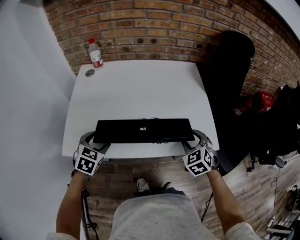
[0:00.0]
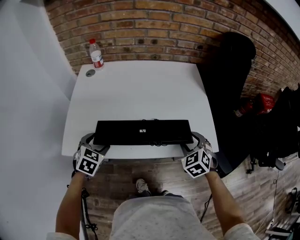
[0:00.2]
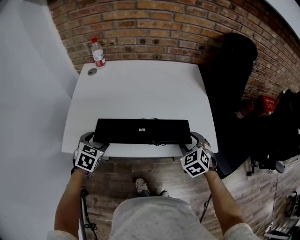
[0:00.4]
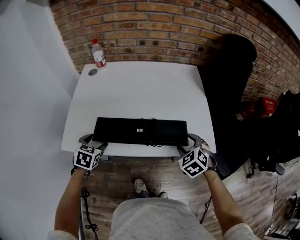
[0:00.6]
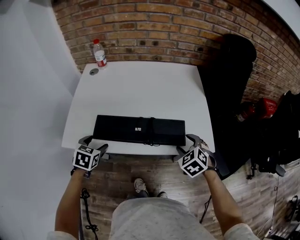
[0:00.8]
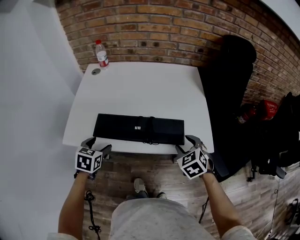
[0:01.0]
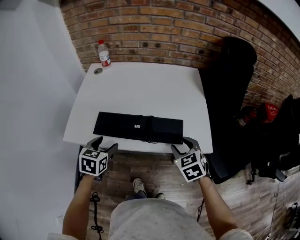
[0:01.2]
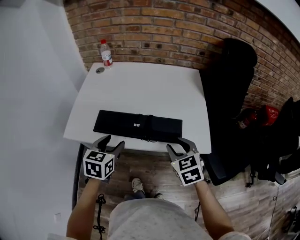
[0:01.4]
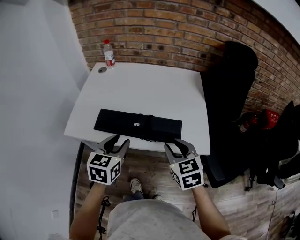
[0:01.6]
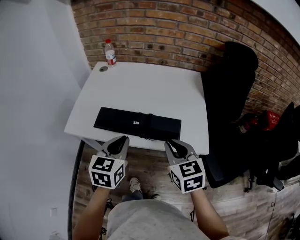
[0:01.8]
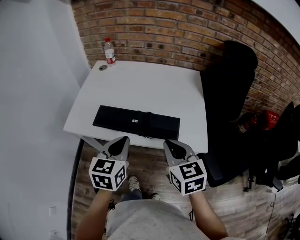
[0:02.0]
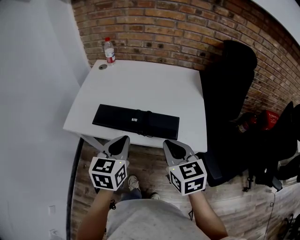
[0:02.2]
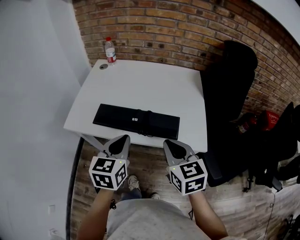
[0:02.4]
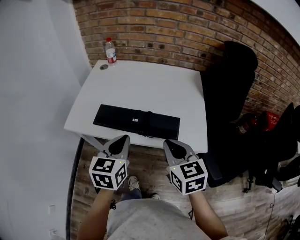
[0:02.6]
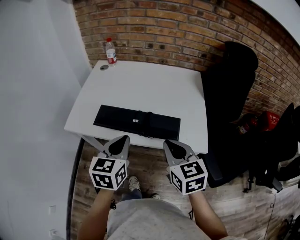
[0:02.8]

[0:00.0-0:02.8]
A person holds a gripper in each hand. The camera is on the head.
0:00.0 to 0:01.4: The left gripper heads to the right, backward and upward, covering roughly 15 cm, and changes its angle by approximately 30 degrees, while the right gripper heads backward, covering some 5 cm, and rotates roughly 20 degrees.
0:01.4 to 0:02.8: The right gripper travels upward by roughly 5 cm, and closes. Meanwhile the left gripper is displaced upward and to the right by some 10 cm, and closes its fingers.

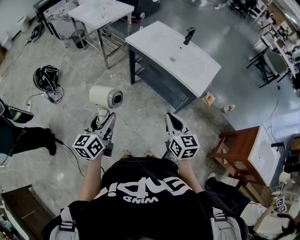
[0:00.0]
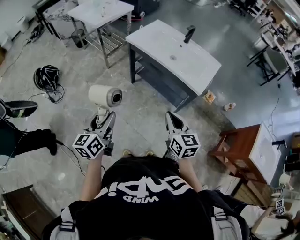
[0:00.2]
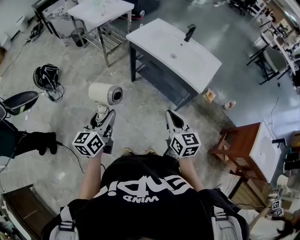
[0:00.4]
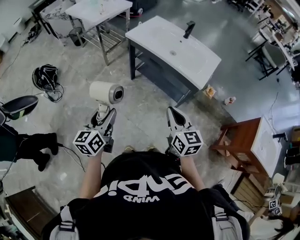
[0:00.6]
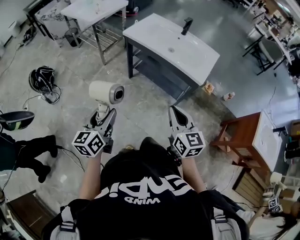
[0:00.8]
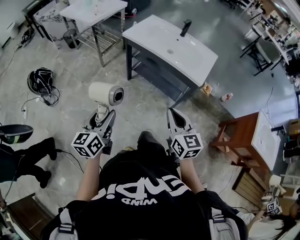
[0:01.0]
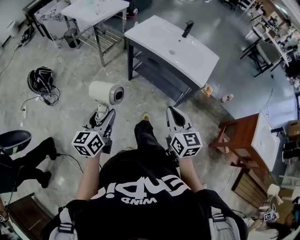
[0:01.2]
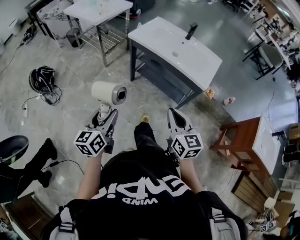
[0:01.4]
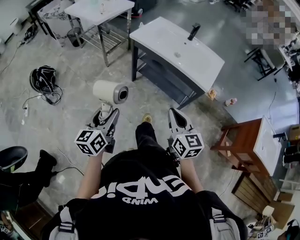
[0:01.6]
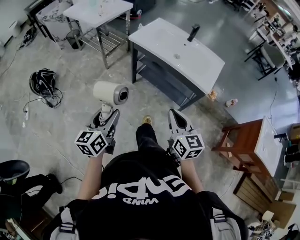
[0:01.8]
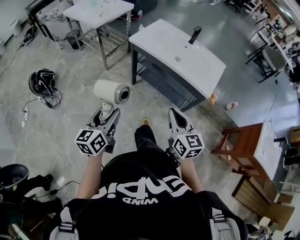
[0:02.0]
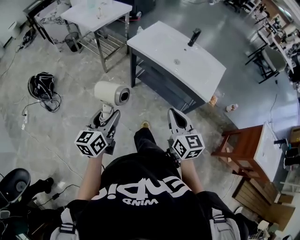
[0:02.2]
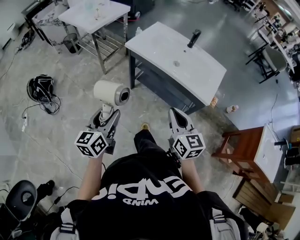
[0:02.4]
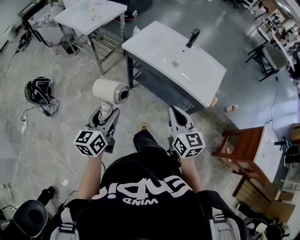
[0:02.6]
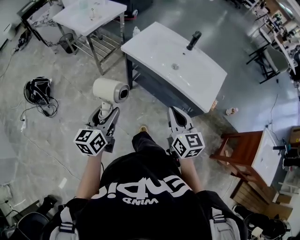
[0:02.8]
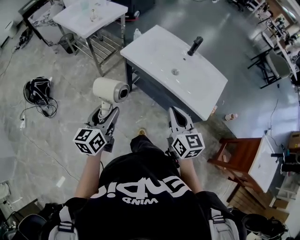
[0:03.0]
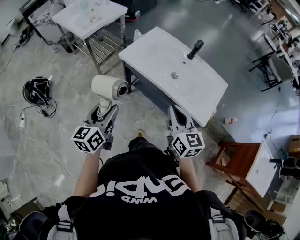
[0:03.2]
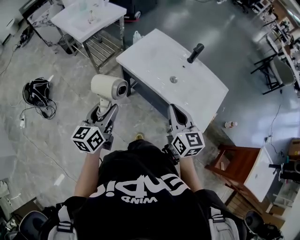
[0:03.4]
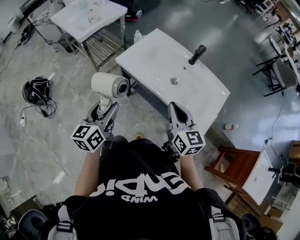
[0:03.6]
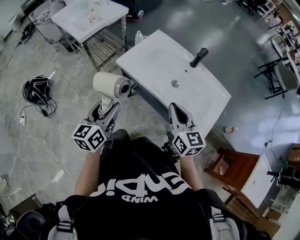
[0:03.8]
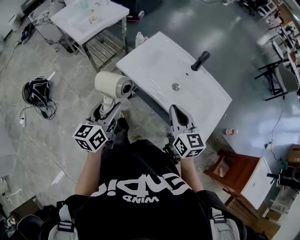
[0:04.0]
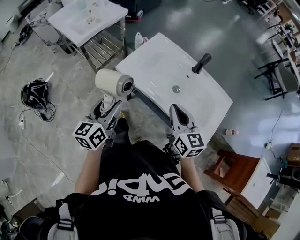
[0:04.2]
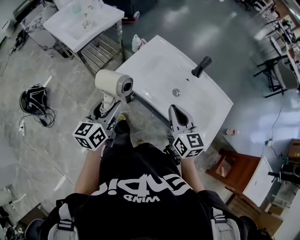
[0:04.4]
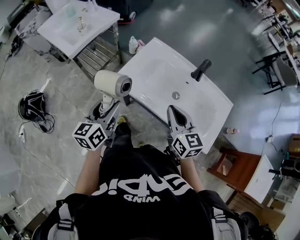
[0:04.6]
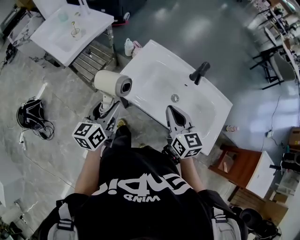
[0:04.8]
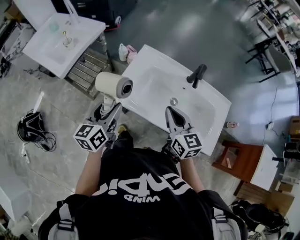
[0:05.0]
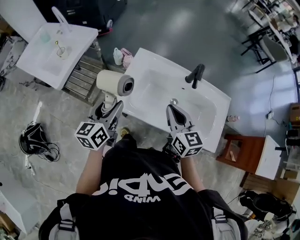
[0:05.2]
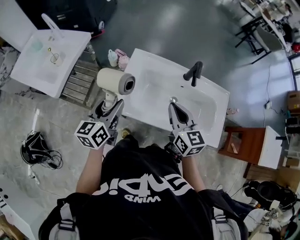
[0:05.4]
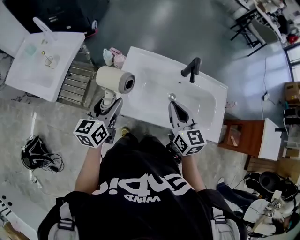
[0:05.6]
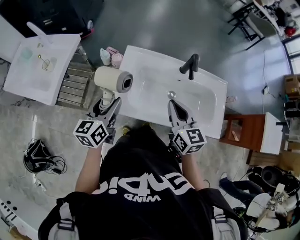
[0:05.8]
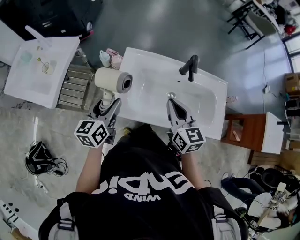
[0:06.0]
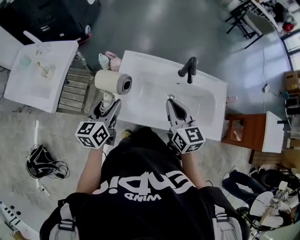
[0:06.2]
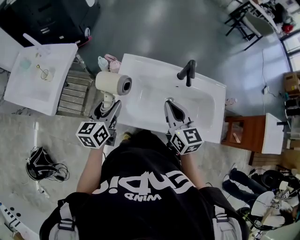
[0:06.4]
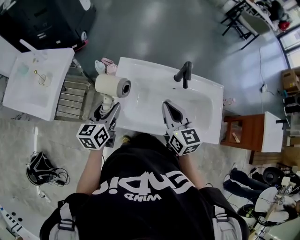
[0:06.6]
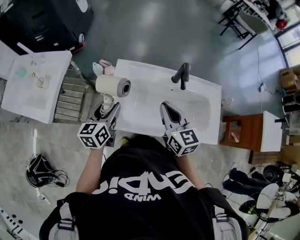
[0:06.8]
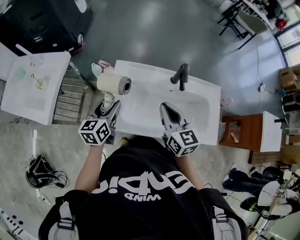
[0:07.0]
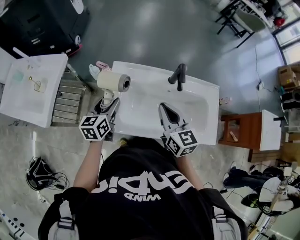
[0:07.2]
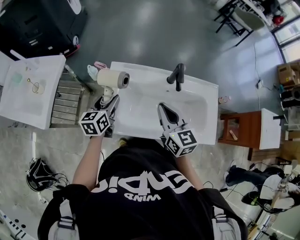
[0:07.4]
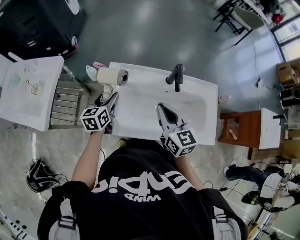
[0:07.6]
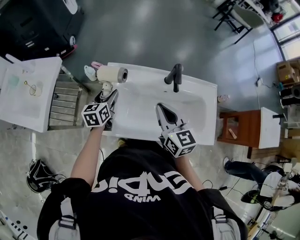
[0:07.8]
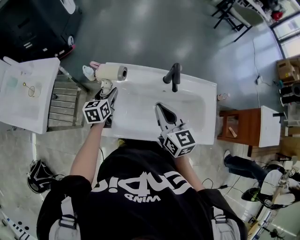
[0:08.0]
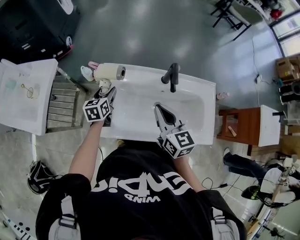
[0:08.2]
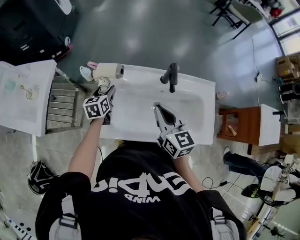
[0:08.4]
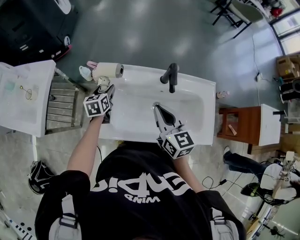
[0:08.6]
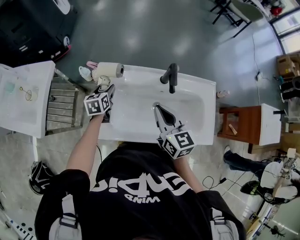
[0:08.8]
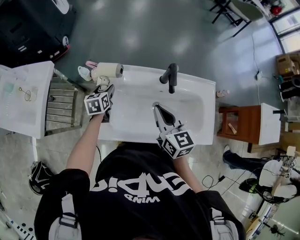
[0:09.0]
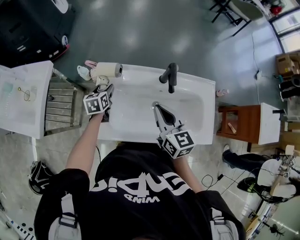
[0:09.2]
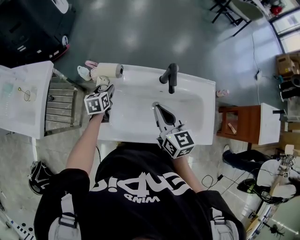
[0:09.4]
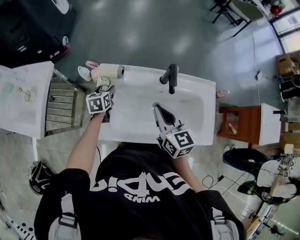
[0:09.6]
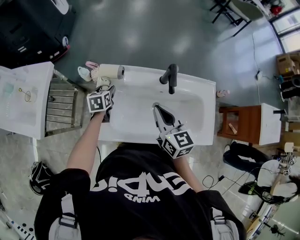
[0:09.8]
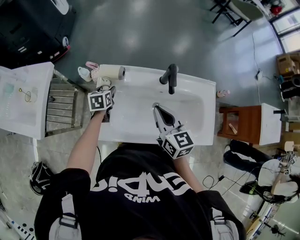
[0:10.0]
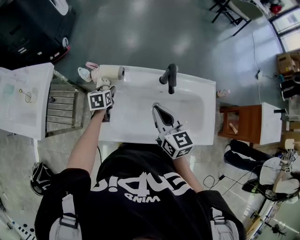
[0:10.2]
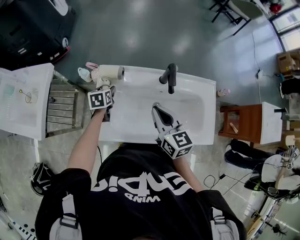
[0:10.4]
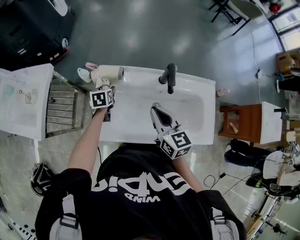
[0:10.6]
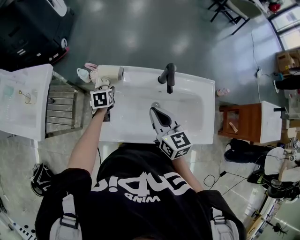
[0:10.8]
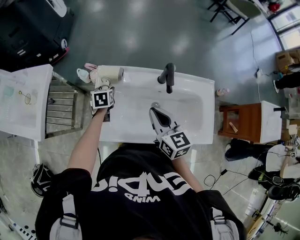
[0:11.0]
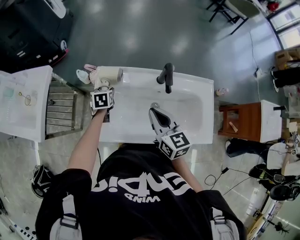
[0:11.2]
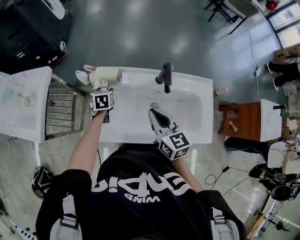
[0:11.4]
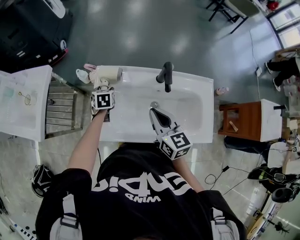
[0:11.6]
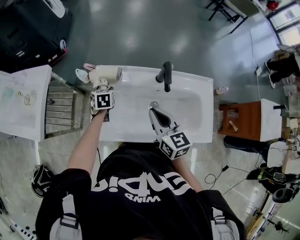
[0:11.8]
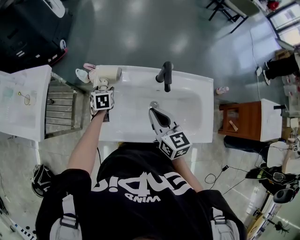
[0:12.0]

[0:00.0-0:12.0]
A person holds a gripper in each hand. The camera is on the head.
0:00.0 to 0:01.6: The two grippers go about 5 cm to the left.
0:01.6 to 0:03.0: Both grippers move forward, about 20 cm.
0:03.0 to 0:04.4: Both grippers travel together forward, some 20 cm.
0:04.4 to 0:06.0: The left gripper travels forward by some 20 cm, and rotates approximately 30 degrees, while the right gripper is displaced forward by approximately 15 cm, and rotates roughly 20 degrees.
0:06.0 to 0:07.6: The left gripper travels forward and downward by some 15 cm.
0:07.6 to 0:09.0: The left gripper travels downward and forward by about 10 cm.
0:09.0 to 0:12.0: The grippers make only small movements.

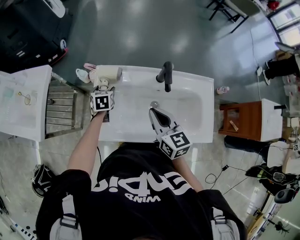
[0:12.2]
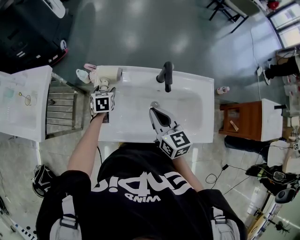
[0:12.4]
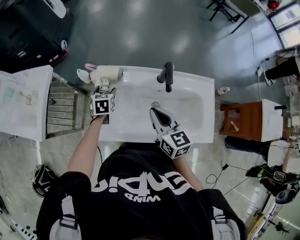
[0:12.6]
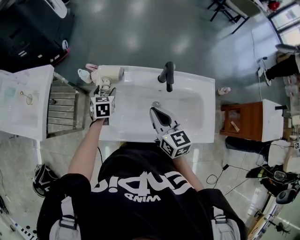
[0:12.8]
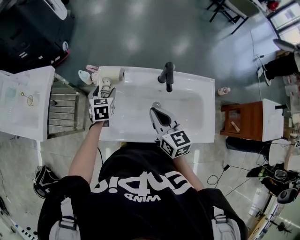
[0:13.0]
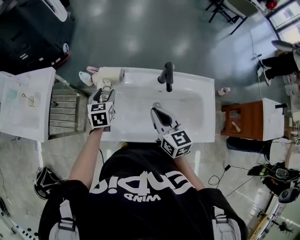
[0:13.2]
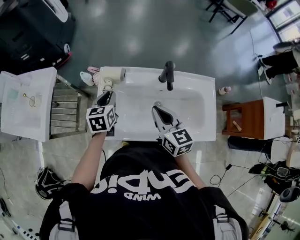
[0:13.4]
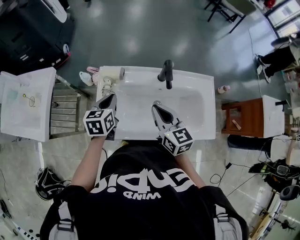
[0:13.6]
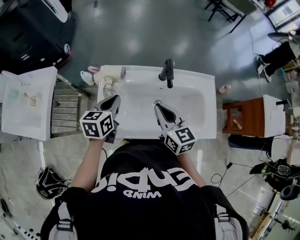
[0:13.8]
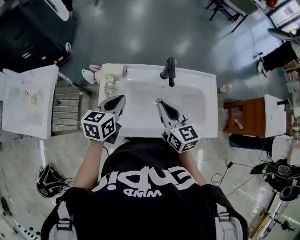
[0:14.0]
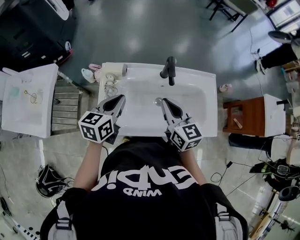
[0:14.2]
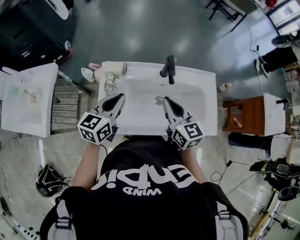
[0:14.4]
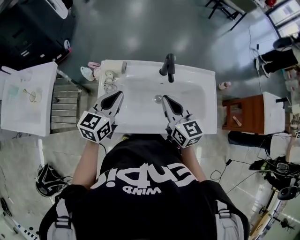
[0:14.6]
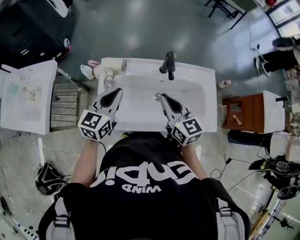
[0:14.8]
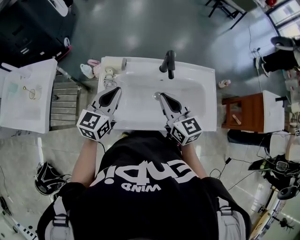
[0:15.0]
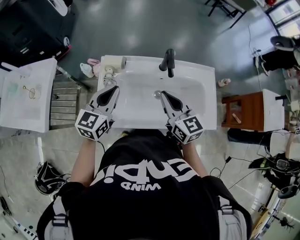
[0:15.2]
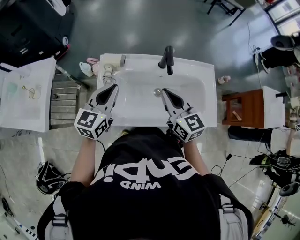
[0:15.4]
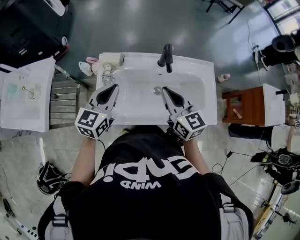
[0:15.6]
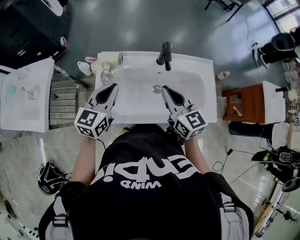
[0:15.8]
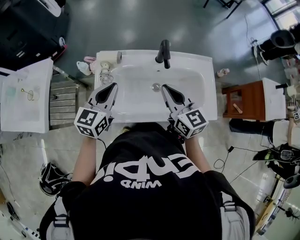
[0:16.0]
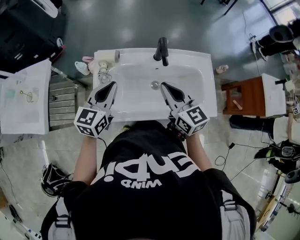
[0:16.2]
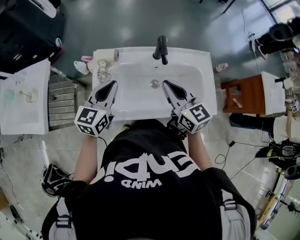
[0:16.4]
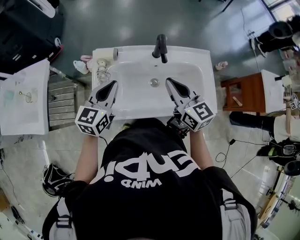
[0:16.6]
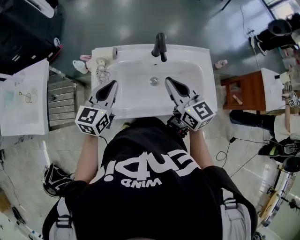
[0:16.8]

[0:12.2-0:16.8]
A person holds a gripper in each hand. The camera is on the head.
0:12.2 to 0:13.8: The left gripper travels upward and backward by approximately 20 cm, rotates approximately 30 degrees, and closes.
0:13.8 to 0:15.2: The left gripper moves upward, some 5 cm, and changes its angle by roughly 30 degrees.
0:15.2 to 0:16.8: The grippers move only a little.

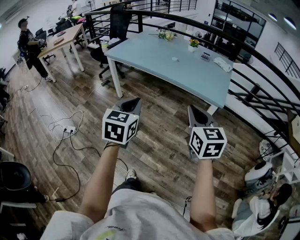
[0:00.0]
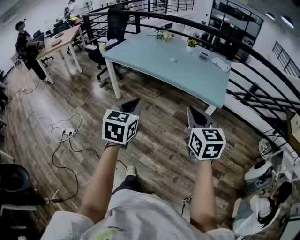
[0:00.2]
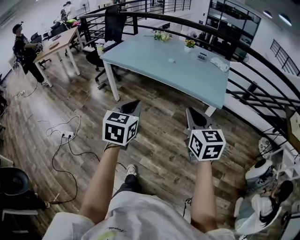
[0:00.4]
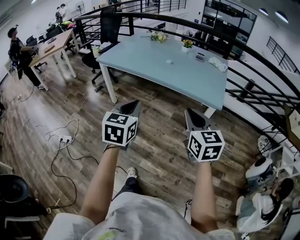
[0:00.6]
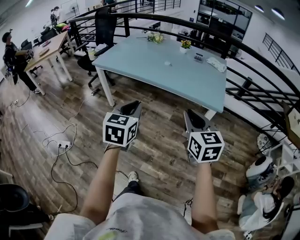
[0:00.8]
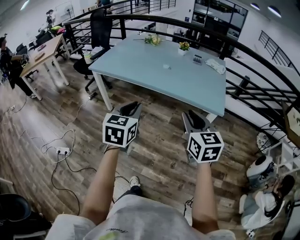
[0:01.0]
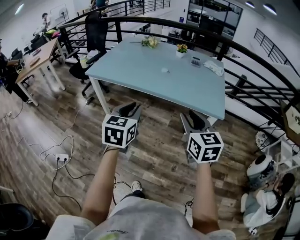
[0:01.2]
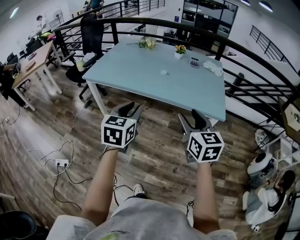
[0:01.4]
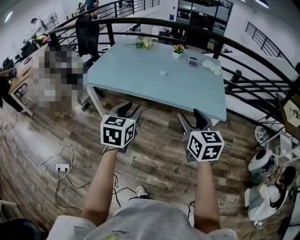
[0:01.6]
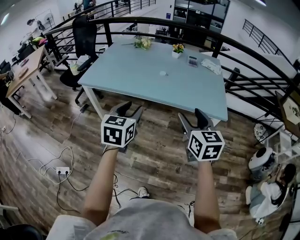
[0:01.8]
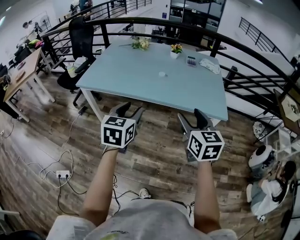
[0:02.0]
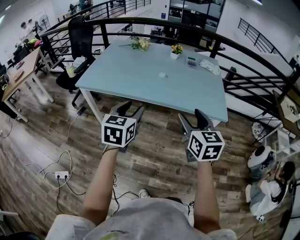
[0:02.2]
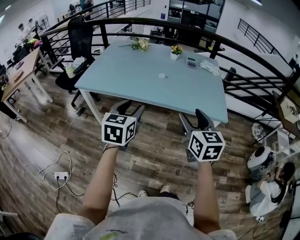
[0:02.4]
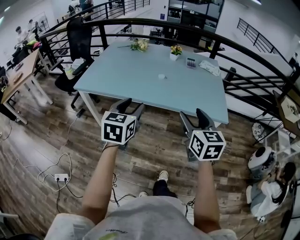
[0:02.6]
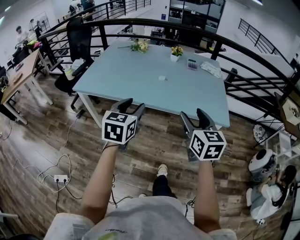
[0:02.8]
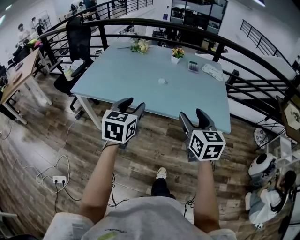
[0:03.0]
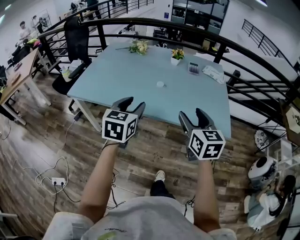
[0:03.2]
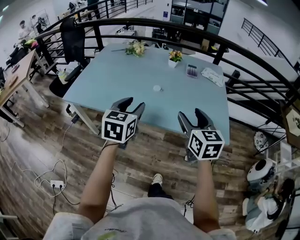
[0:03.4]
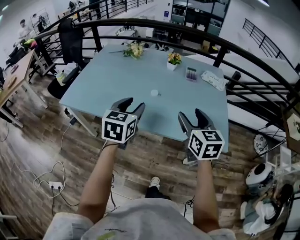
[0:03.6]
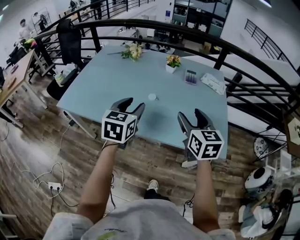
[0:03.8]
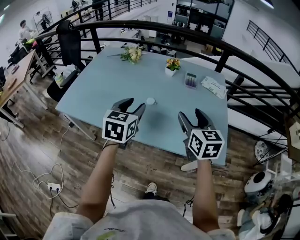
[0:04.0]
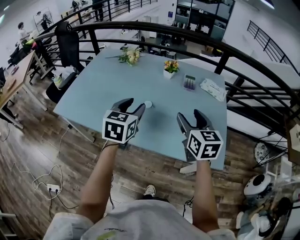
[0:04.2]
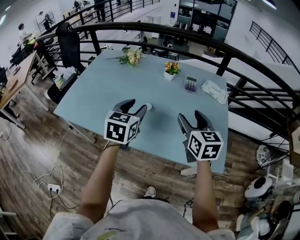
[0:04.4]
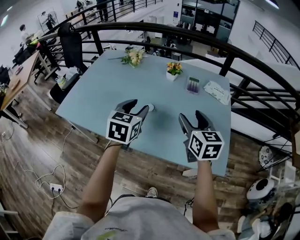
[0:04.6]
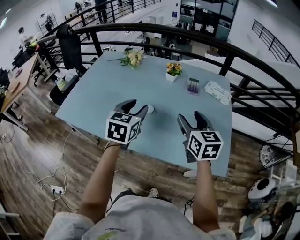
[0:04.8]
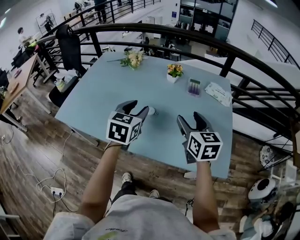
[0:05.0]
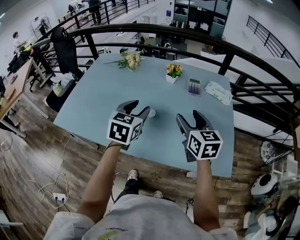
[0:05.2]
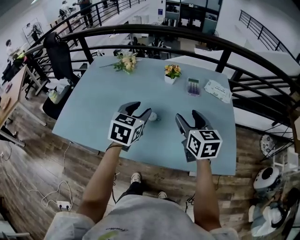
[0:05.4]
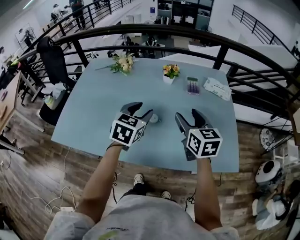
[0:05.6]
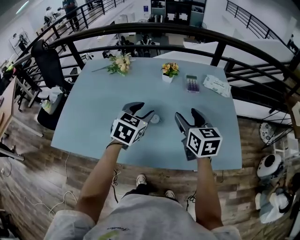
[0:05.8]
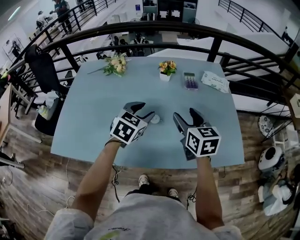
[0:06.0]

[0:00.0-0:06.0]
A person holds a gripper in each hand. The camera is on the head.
0:00.0 to 0:01.6: The right gripper heads forward and to the left, covering about 20 cm, and opens up. The left gripper moves forward, about 25 cm, and opens up.
0:01.6 to 0:03.0: The grippers both shift forward by about 10 cm.
0:03.0 to 0:04.4: The right gripper heads forward, covering about 25 cm. The left gripper heads forward and to the right, covering about 25 cm.
0:04.4 to 0:06.0: The right gripper moves forward and to the left, approximately 10 cm. Meanwhile the left gripper is displaced forward and downward by approximately 15 cm, and turns by about 30 degrees.
